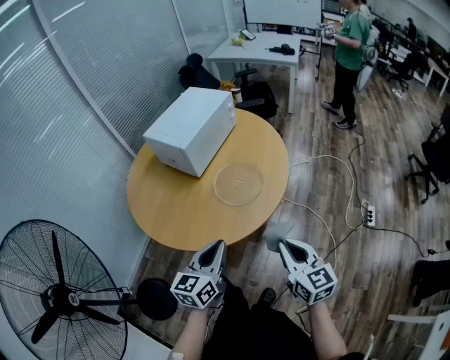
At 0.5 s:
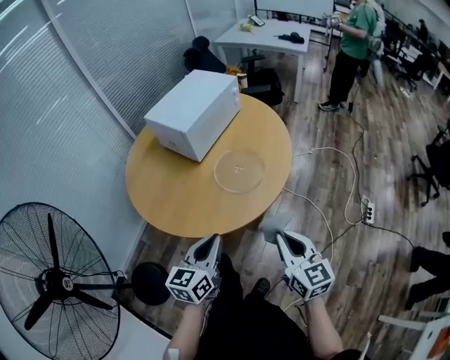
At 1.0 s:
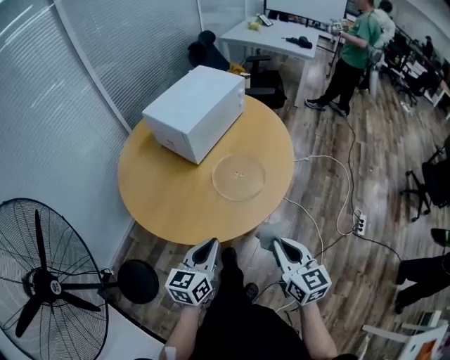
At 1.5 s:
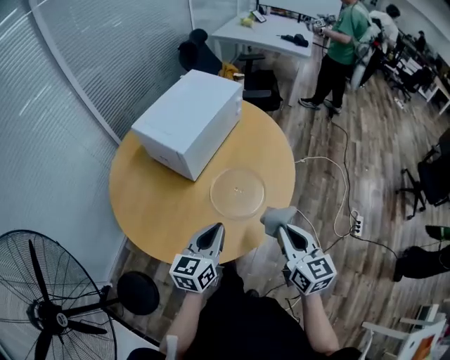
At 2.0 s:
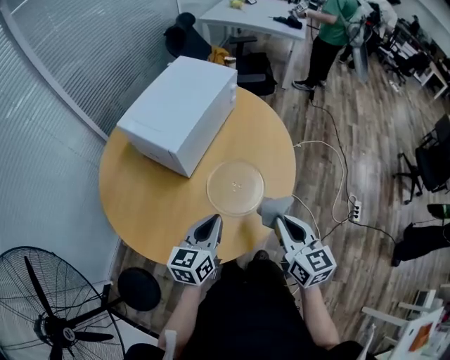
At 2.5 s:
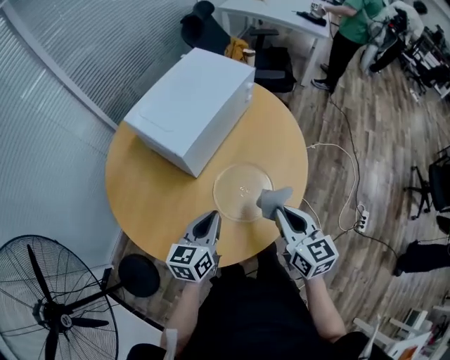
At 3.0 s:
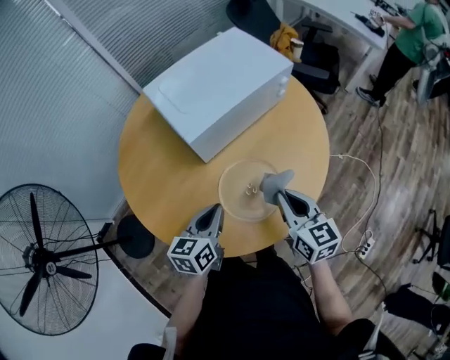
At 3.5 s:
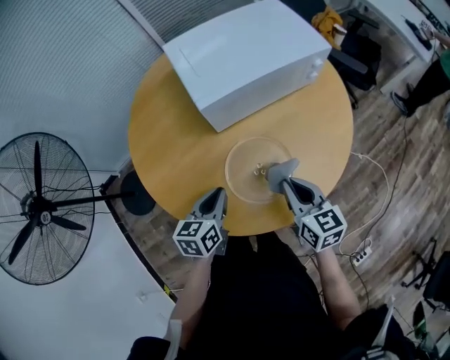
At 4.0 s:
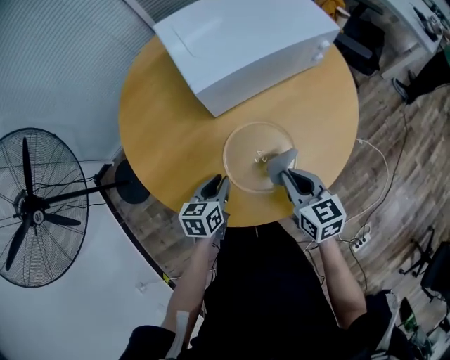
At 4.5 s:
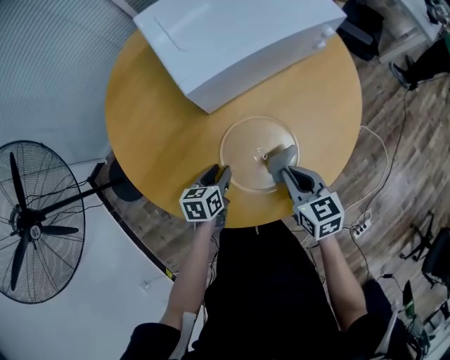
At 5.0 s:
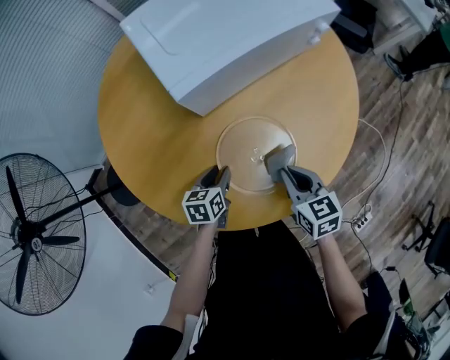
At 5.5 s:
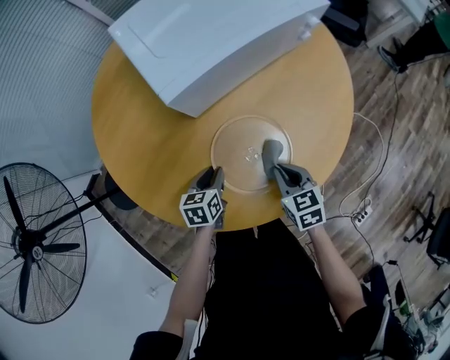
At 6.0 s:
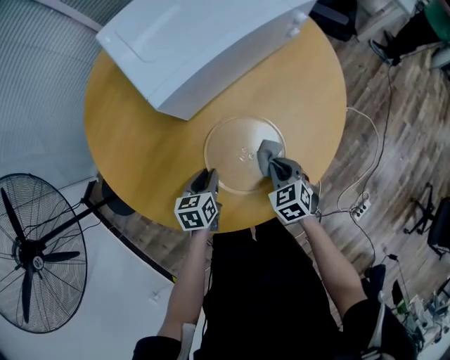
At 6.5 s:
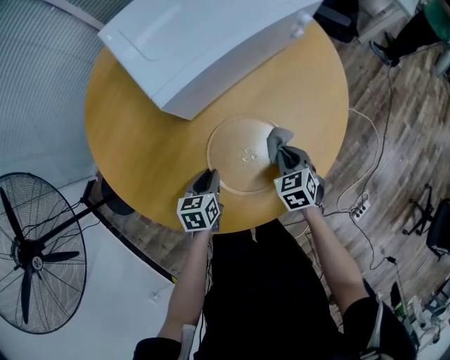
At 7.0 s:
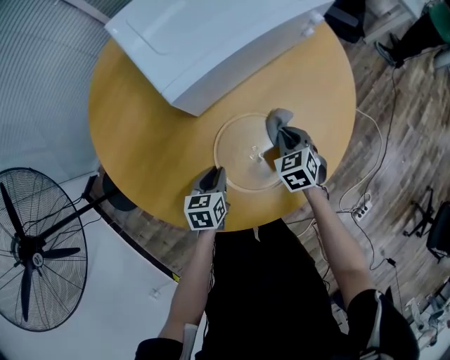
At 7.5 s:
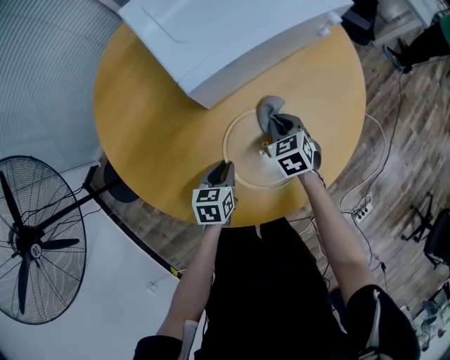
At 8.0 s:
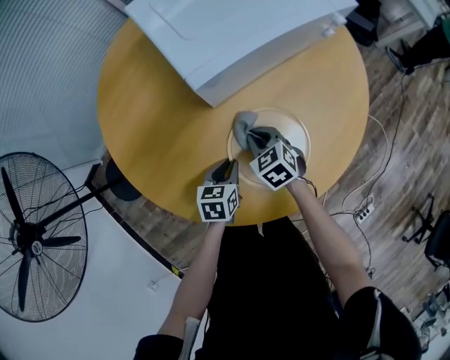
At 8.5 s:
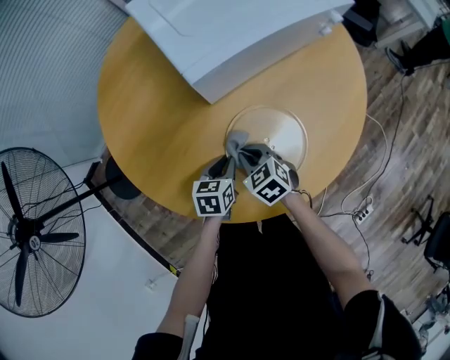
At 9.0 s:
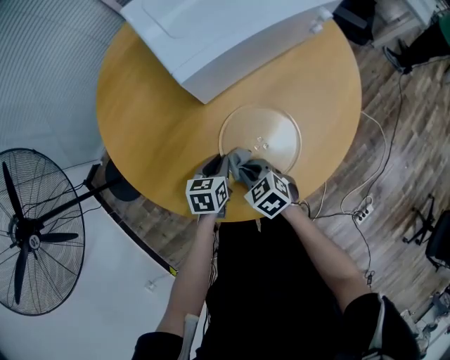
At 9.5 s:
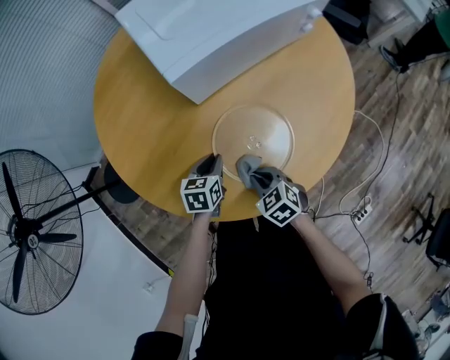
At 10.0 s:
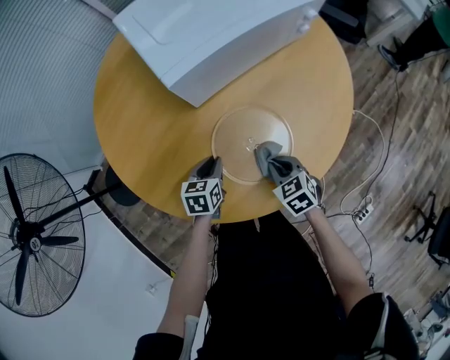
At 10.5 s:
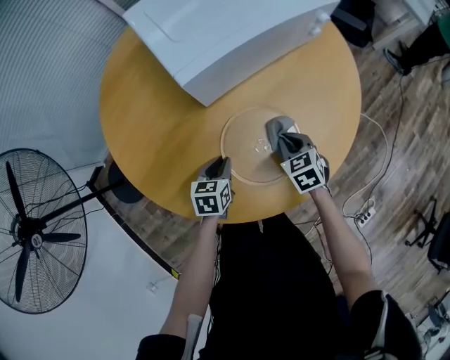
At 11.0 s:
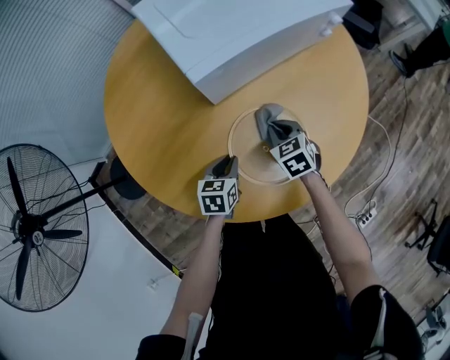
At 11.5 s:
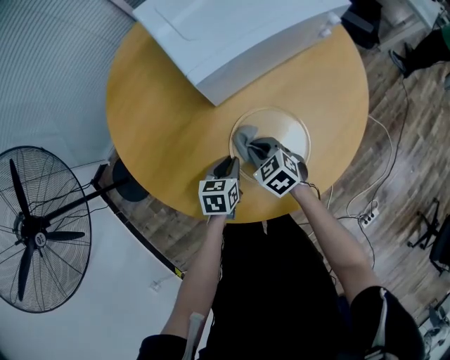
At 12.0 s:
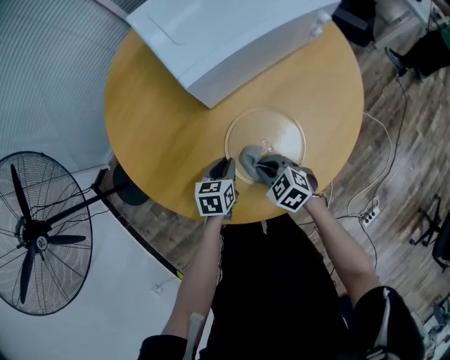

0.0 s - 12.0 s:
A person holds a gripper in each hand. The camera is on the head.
0.0 s - 2.0 s: The two grippers go approximately 25 cm forward.
2.0 s - 4.0 s: The right gripper ends up roughly 20 cm from where it was, and rotates about 50 degrees. The left gripper moves downward, some 15 cm, and changes its angle by approximately 40 degrees.
4.0 s - 6.0 s: The right gripper goes about 15 cm downward, and rotates about 30 degrees. The left gripper moves downward, approximately 10 cm.
6.0 s - 8.0 s: The right gripper shifts approximately 15 cm to the left and forward.
8.0 s - 10.0 s: The right gripper shifts about 15 cm backward and to the right.
10.0 s - 12.0 s: The right gripper heads to the left, covering about 10 cm.

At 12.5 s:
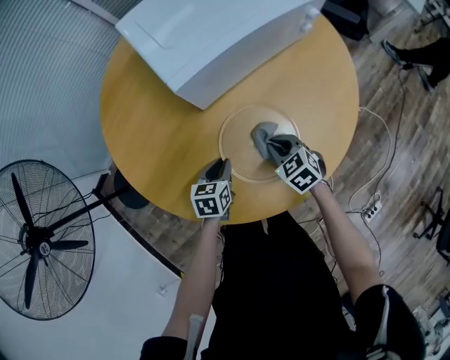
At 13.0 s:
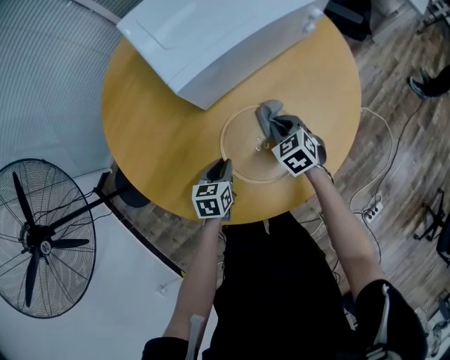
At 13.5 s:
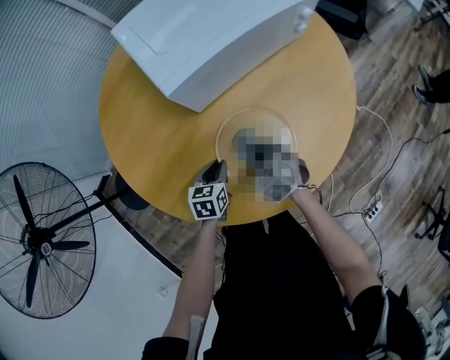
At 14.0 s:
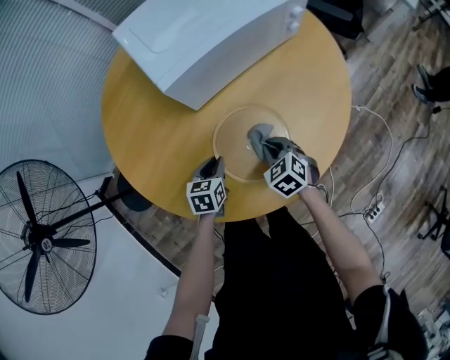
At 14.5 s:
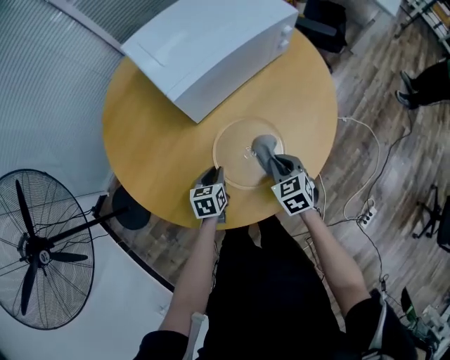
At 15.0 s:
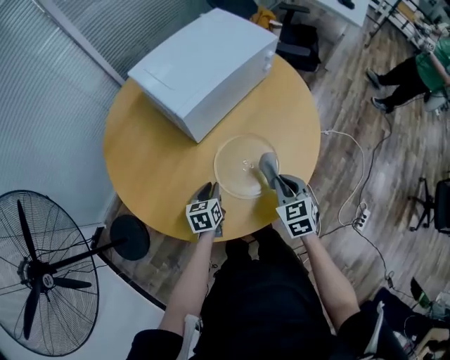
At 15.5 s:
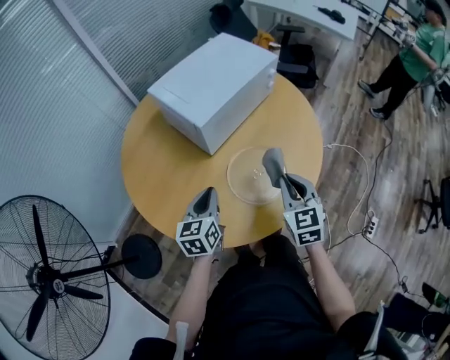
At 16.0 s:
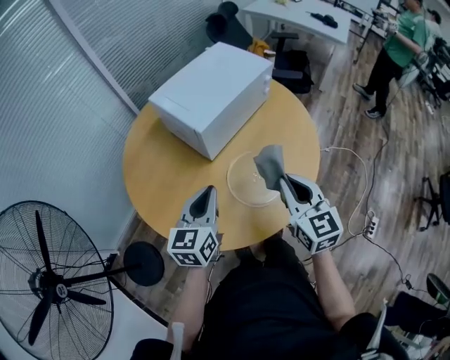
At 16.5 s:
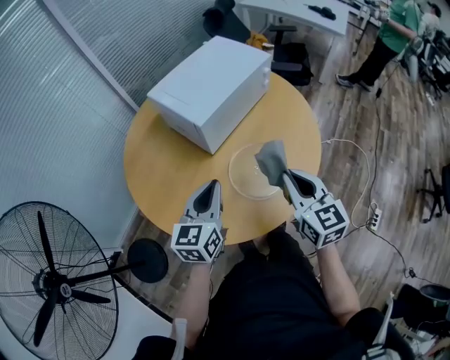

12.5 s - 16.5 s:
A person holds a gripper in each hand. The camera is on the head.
12.5 s - 14.5 s: The right gripper shifts by approximately 5 cm, and turns by approximately 20 degrees.
14.5 s - 16.5 s: Both grippers move upward, roughly 30 cm. The left gripper angles its fingers upward, by approximately 30 degrees. The right gripper tips its fingers upward by roughly 30 degrees.

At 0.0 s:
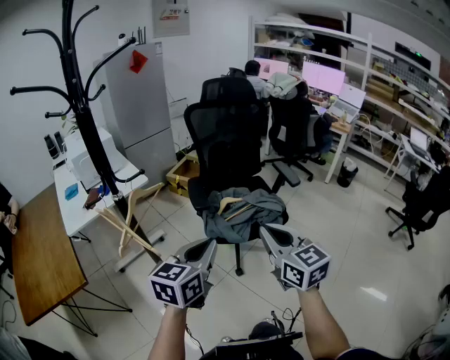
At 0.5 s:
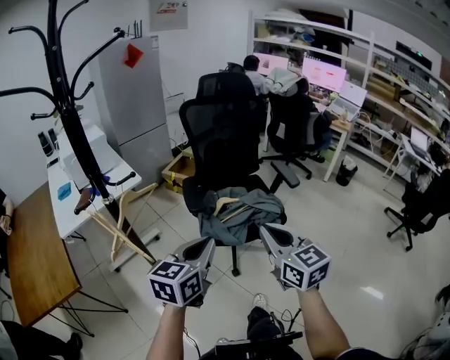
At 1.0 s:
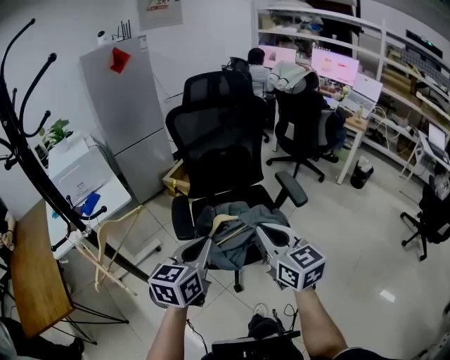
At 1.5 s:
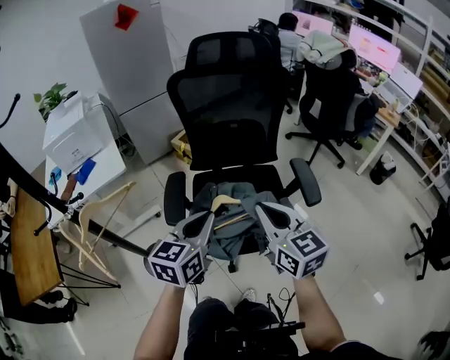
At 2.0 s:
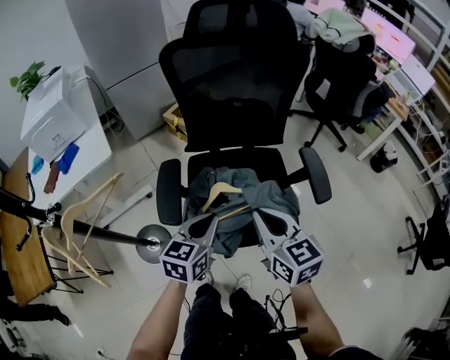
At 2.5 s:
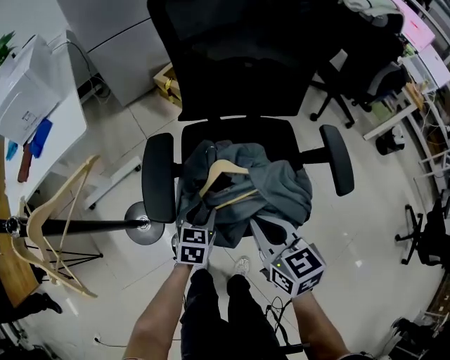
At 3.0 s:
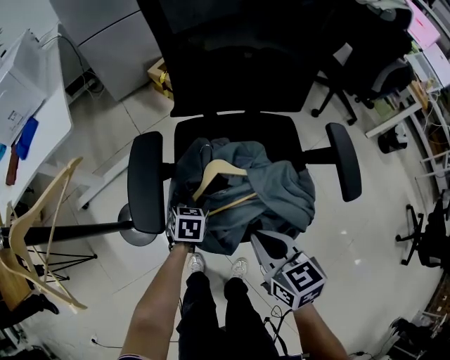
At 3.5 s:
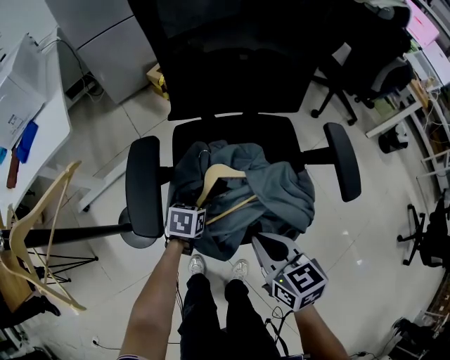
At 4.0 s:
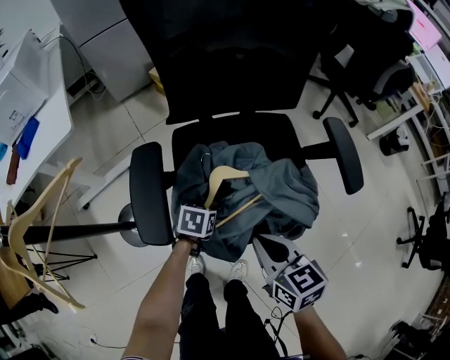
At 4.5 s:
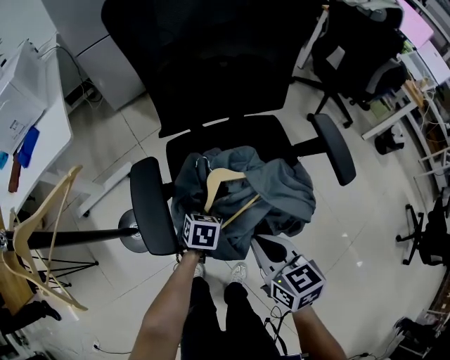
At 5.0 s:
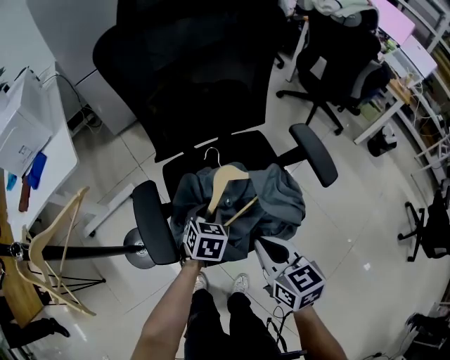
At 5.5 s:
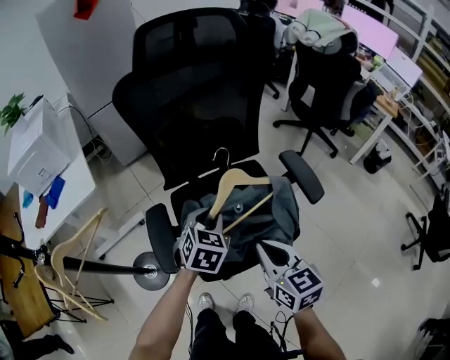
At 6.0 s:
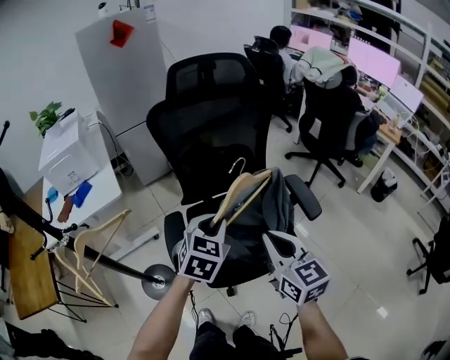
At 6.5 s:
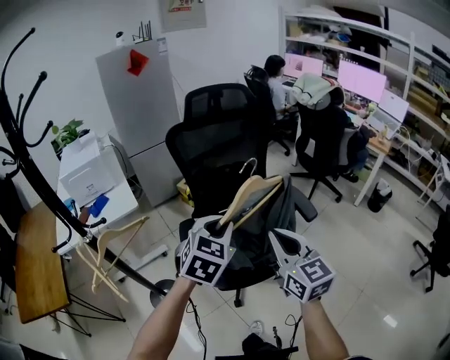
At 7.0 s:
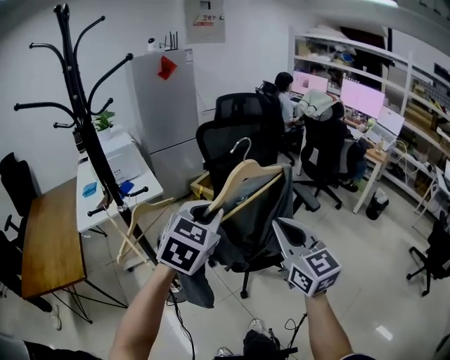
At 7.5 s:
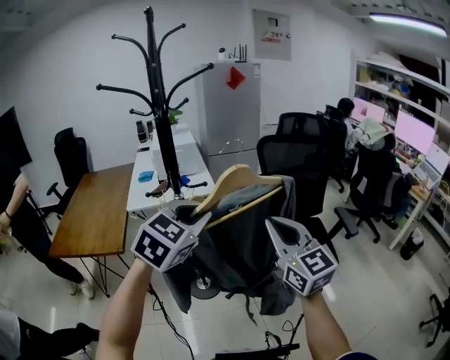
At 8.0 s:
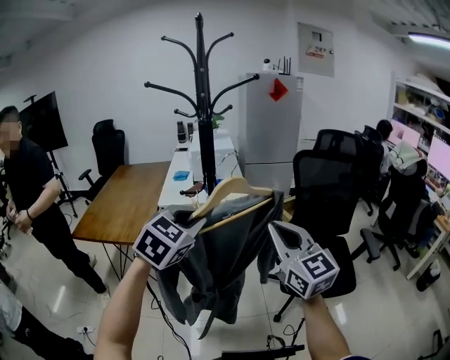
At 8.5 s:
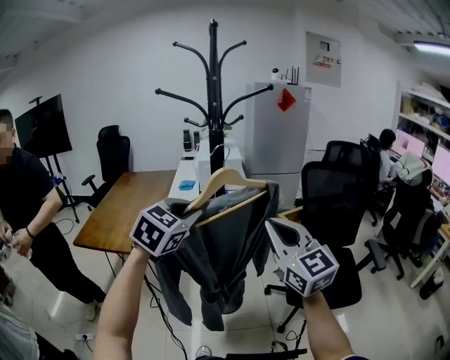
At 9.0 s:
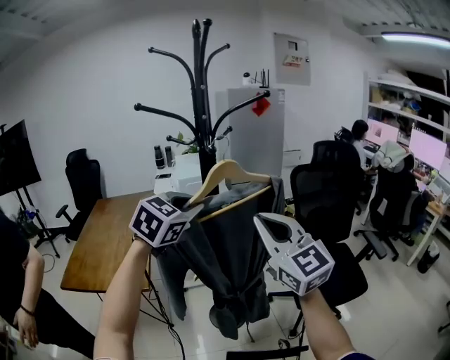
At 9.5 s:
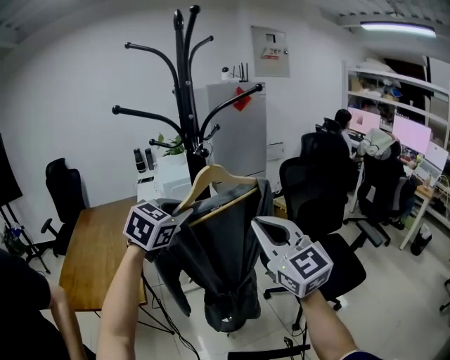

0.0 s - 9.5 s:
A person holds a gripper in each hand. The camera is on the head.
0.0 s - 2.0 s: The right gripper moves forward, approximately 30 cm. Meanwhile the left gripper shifts some 35 cm forward and downward.
2.0 s - 4.0 s: The left gripper travels downward by some 30 cm, tilts its fingers some 40 degrees downward, and opens, while the right gripper travels downward by about 15 cm.
4.0 s - 5.5 s: The left gripper is displaced upward by roughly 30 cm, and rotates approximately 40 degrees, while the right gripper shifts approximately 15 cm upward.
5.5 s - 7.5 s: The right gripper heads upward, to the left and backward, covering approximately 40 cm, and changes its angle by roughly 40 degrees. The left gripper is displaced backward, upward and to the left by approximately 60 cm, and changes its angle by roughly 20 degrees.
7.5 s - 9.5 s: The right gripper shifts roughly 20 cm to the left and forward. Meanwhile the left gripper moves forward and to the left, roughly 30 cm.

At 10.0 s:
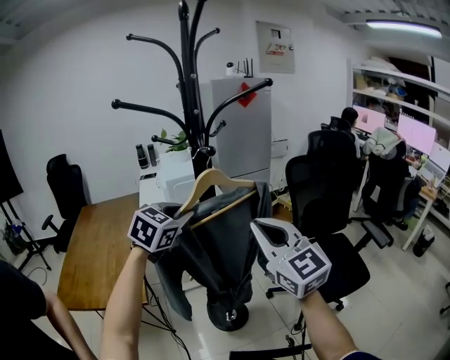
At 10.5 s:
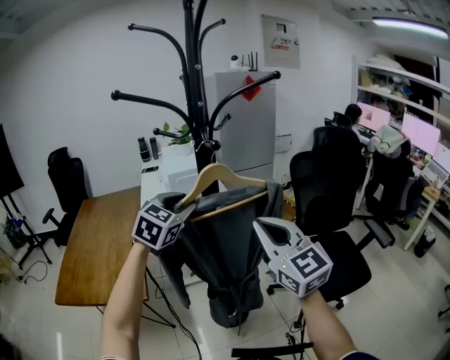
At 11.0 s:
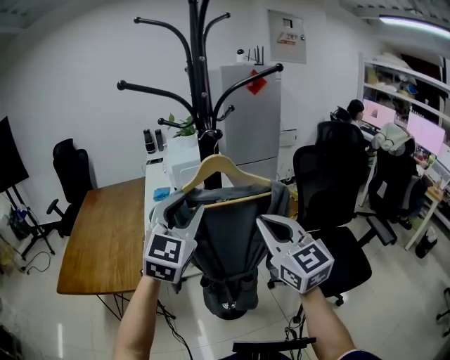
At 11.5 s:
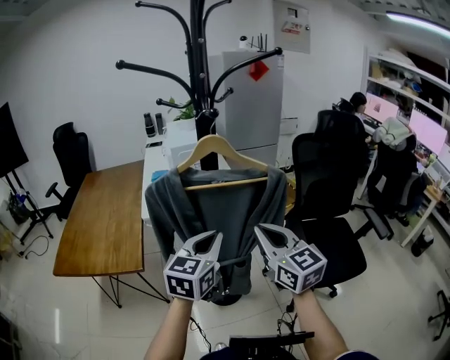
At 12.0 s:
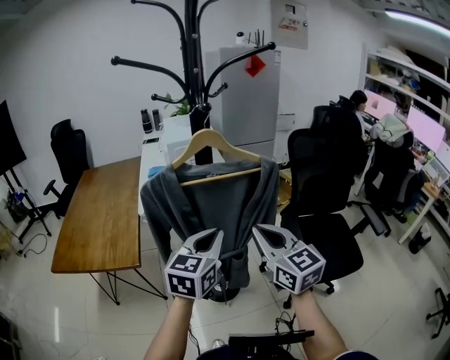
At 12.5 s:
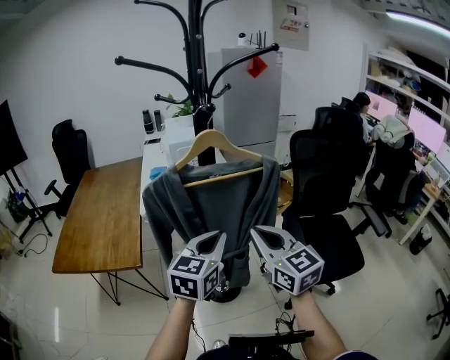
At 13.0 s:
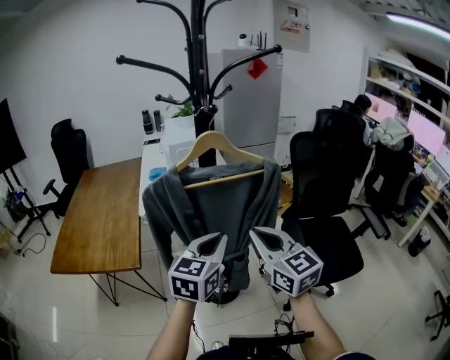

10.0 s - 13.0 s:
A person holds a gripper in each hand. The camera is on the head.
10.0 s - 11.5 s: The right gripper is displaced downward by approximately 10 cm, while the left gripper is displaced backward, downward and to the right by roughly 20 cm, turns by approximately 30 degrees, and opens, then closes again.
11.5 s - 13.0 s: The grippers make only small movements.
